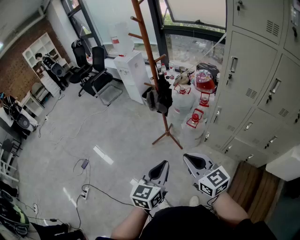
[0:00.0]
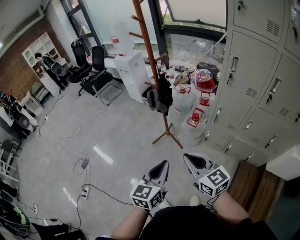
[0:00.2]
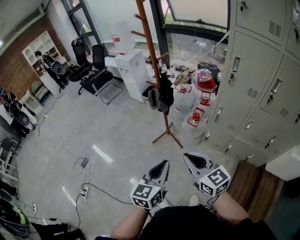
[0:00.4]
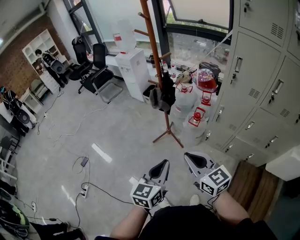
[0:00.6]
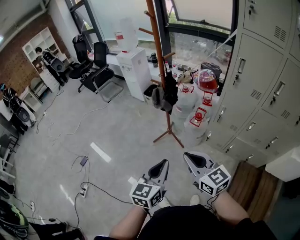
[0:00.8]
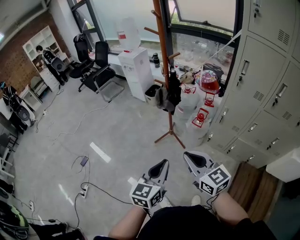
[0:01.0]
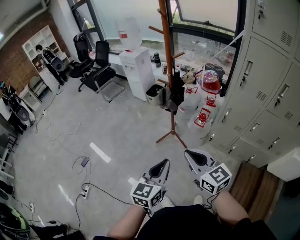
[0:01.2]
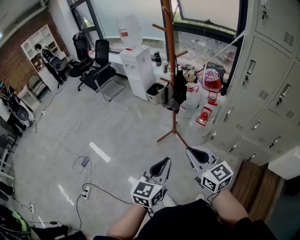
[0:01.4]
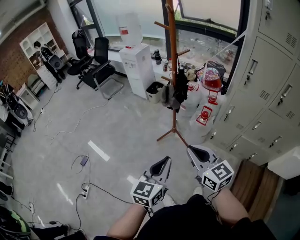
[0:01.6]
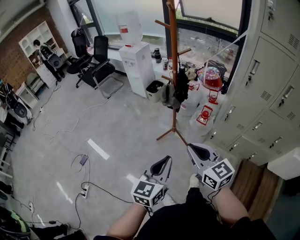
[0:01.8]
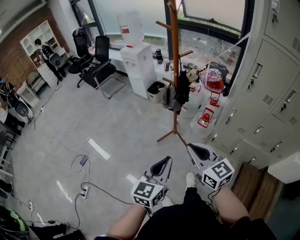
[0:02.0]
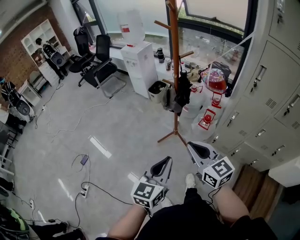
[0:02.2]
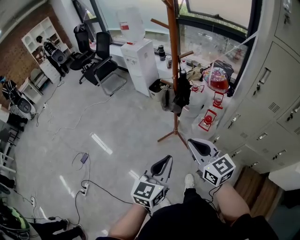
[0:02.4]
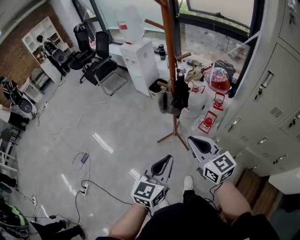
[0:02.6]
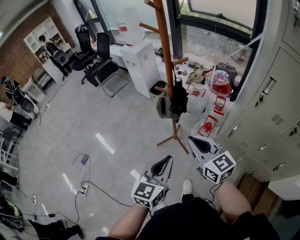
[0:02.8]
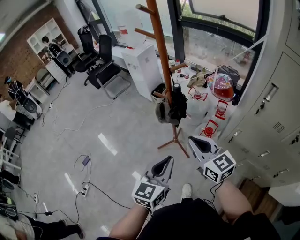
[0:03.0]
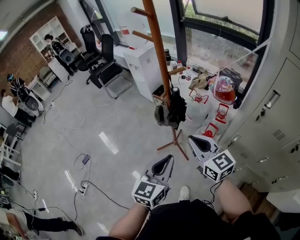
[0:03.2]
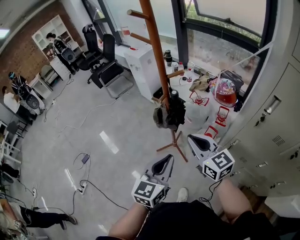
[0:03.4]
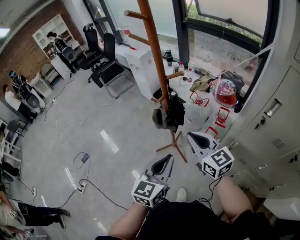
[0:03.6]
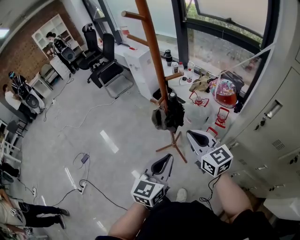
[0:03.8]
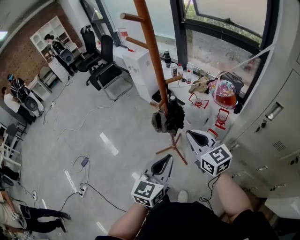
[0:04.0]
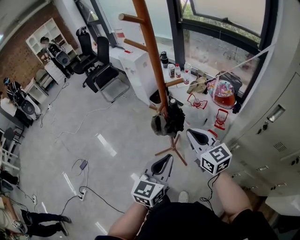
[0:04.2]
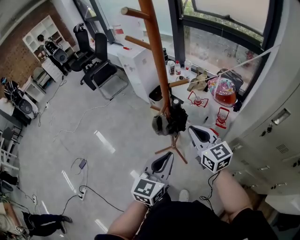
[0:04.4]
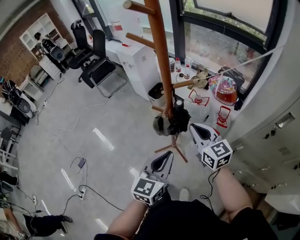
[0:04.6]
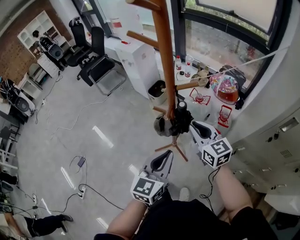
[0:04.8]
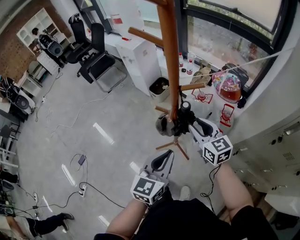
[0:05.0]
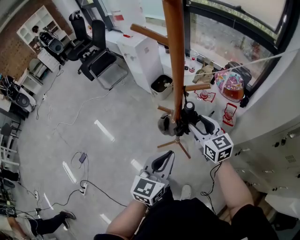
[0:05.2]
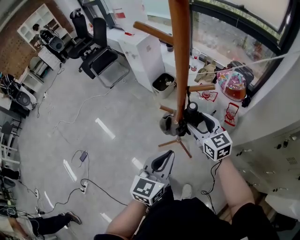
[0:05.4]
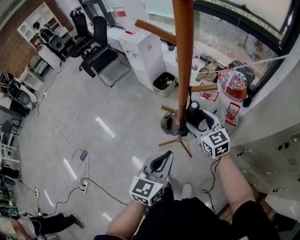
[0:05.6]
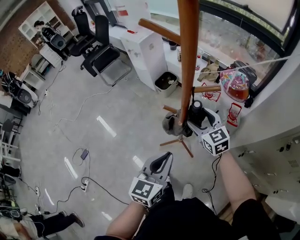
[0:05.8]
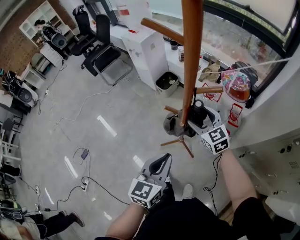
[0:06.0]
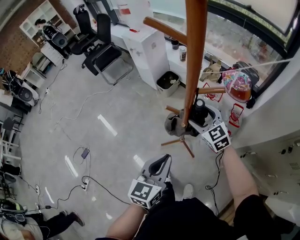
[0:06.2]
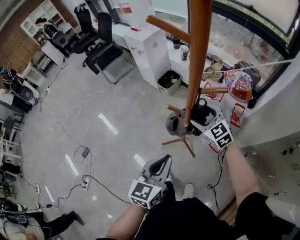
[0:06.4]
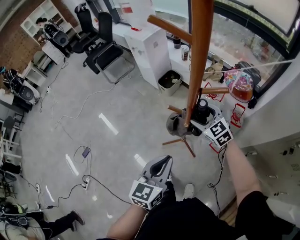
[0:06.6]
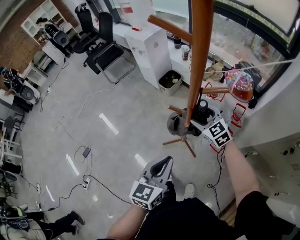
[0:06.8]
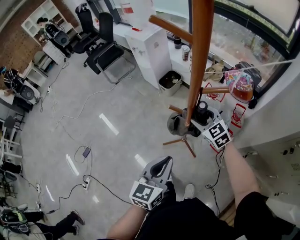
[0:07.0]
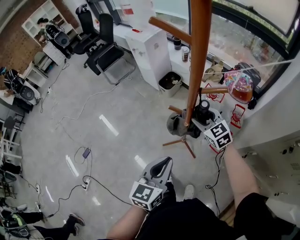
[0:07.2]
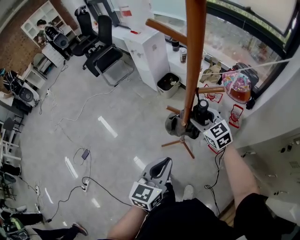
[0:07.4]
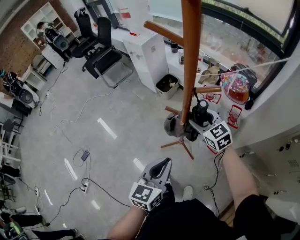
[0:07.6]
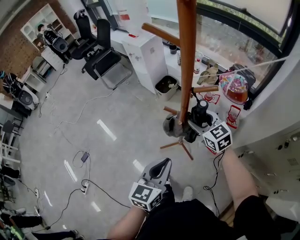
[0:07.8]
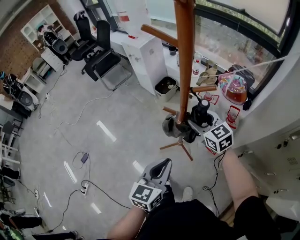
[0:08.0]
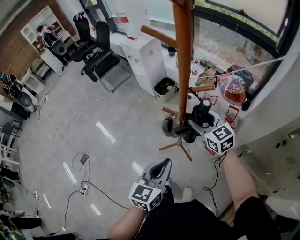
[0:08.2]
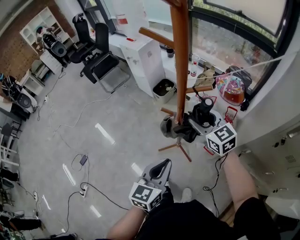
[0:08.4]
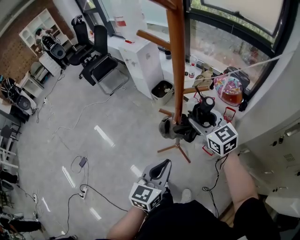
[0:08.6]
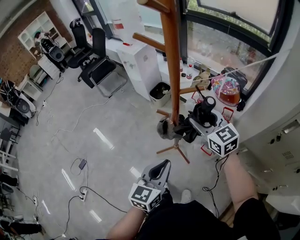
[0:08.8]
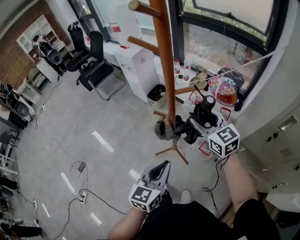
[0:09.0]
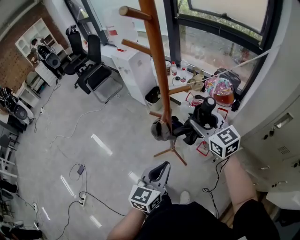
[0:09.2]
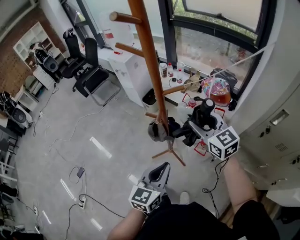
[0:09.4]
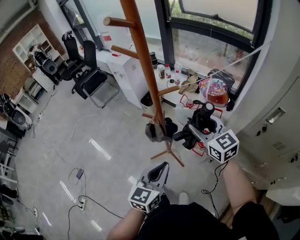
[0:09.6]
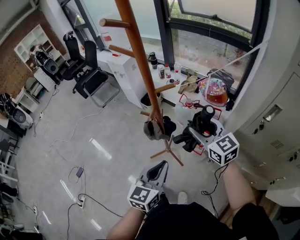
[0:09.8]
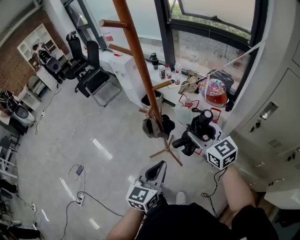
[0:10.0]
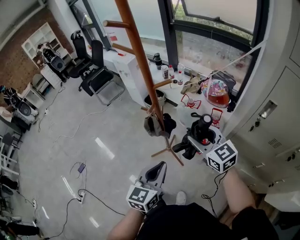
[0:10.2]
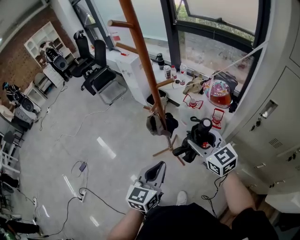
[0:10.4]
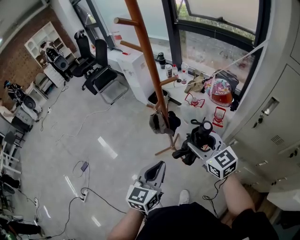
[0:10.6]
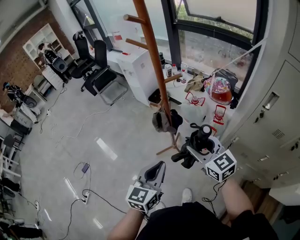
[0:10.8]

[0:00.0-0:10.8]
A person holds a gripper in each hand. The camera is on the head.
0:00.0 to 0:01.6: Both grippers travel together to the left, about 10 cm.
0:01.6 to 0:03.0: The grippers both shift forward and to the right by roughly 25 cm.
0:03.0 to 0:04.6: The grippers both shift forward by some 15 cm.
0:04.6 to 0:06.2: The left gripper is displaced to the left by roughly 5 cm. The right gripper shifts approximately 15 cm forward and downward, rotates some 20 degrees, and opens its fingers.
0:06.2 to 0:07.8: There are only small adjustments of the grippers.
0:07.8 to 0:09.2: The left gripper moves roughly 5 cm; the right gripper goes approximately 15 cm upward, to the right and backward.
0:09.2 to 0:10.8: The right gripper shifts roughly 20 cm backward, while the left gripper travels backward by approximately 10 cm.

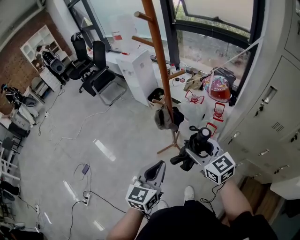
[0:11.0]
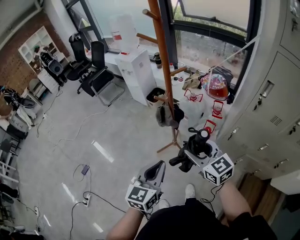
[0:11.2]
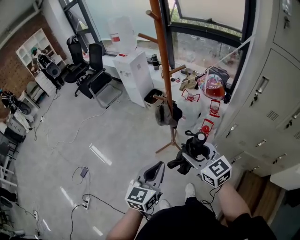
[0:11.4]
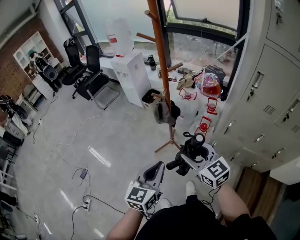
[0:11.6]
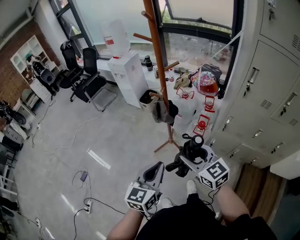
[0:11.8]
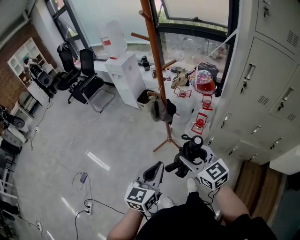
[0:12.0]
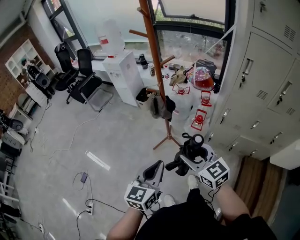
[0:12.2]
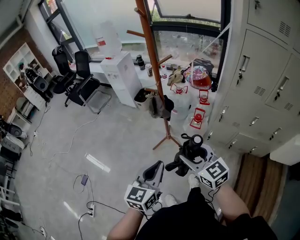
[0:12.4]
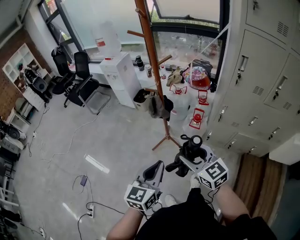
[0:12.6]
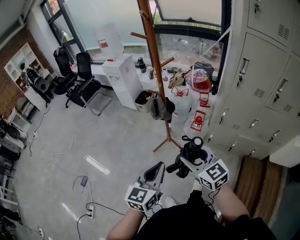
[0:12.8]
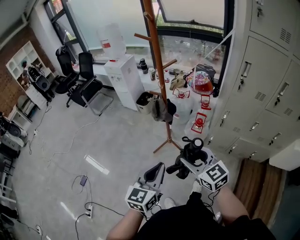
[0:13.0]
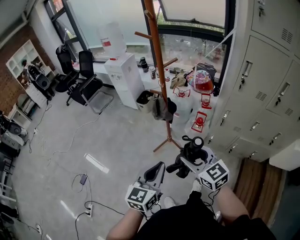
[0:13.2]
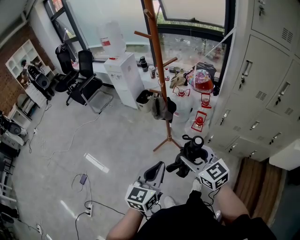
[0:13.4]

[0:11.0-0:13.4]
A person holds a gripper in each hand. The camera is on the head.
0:11.0 to 0:12.2: The grippers both shift backward and to the left by about 15 cm.
0:12.2 to 0:13.4: The grippers move only a little.

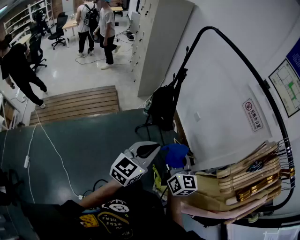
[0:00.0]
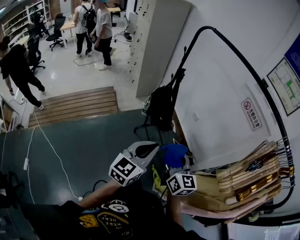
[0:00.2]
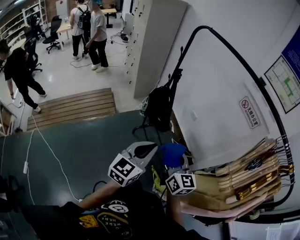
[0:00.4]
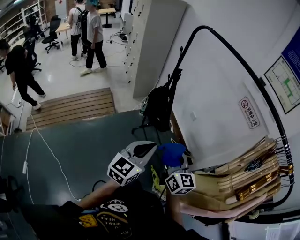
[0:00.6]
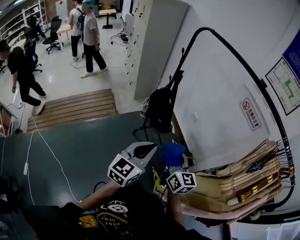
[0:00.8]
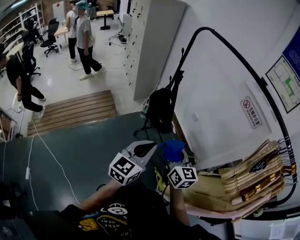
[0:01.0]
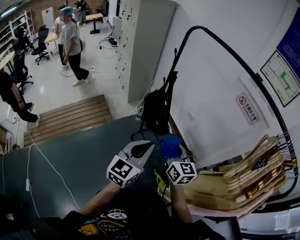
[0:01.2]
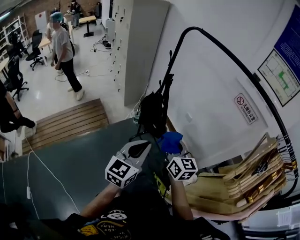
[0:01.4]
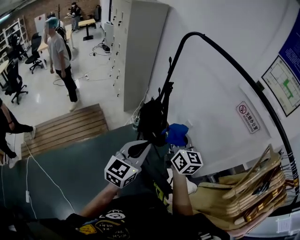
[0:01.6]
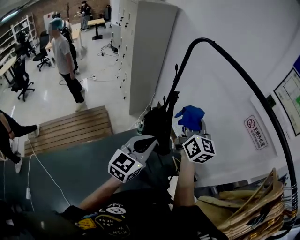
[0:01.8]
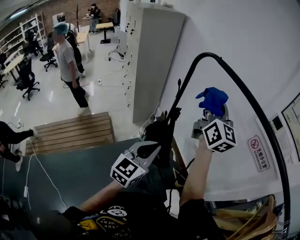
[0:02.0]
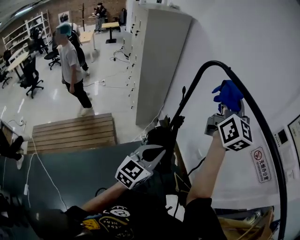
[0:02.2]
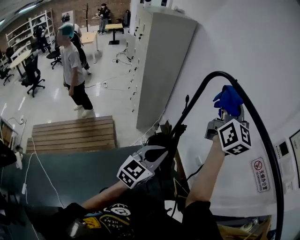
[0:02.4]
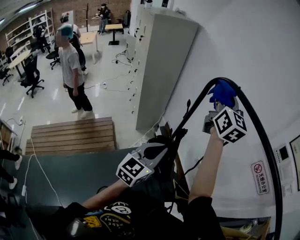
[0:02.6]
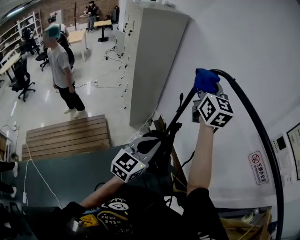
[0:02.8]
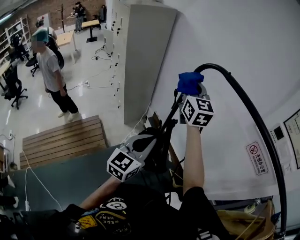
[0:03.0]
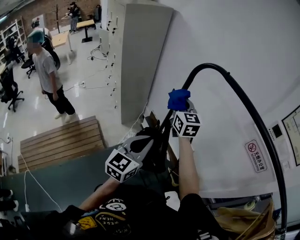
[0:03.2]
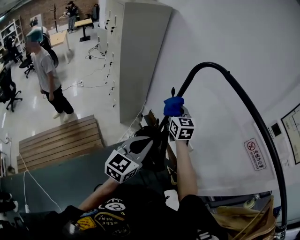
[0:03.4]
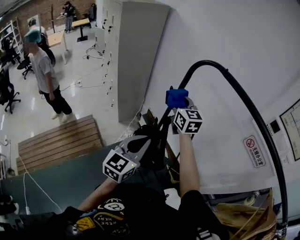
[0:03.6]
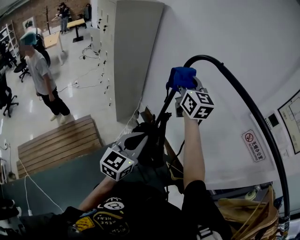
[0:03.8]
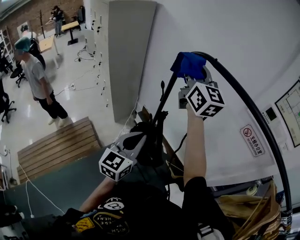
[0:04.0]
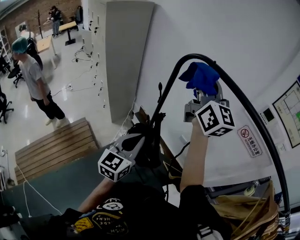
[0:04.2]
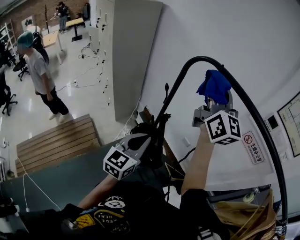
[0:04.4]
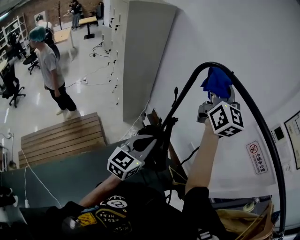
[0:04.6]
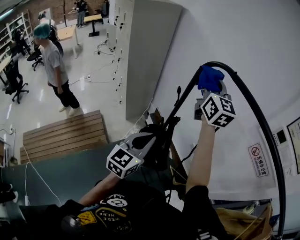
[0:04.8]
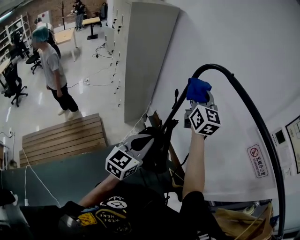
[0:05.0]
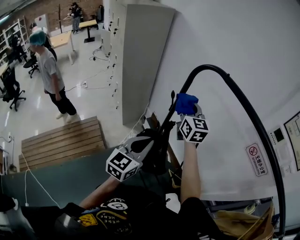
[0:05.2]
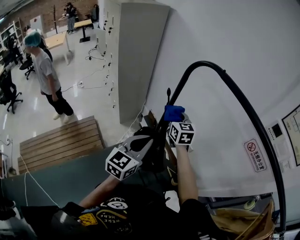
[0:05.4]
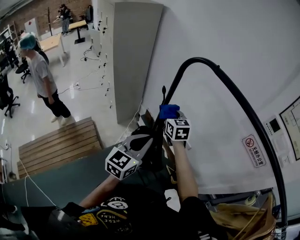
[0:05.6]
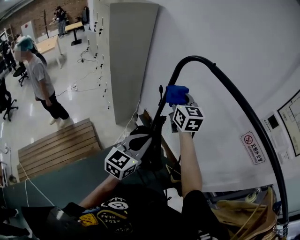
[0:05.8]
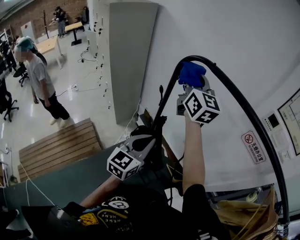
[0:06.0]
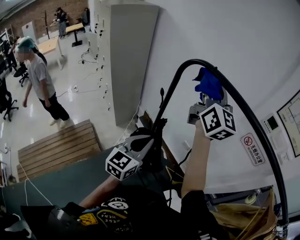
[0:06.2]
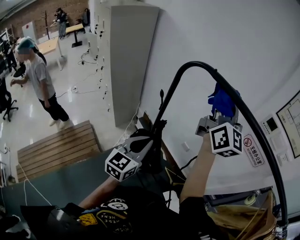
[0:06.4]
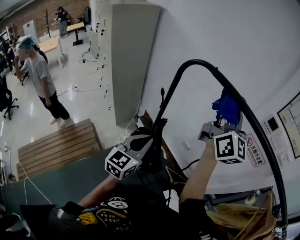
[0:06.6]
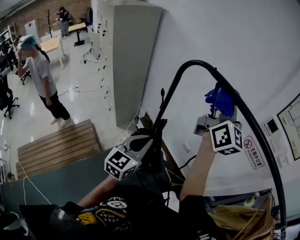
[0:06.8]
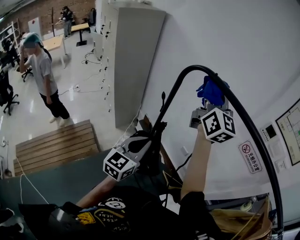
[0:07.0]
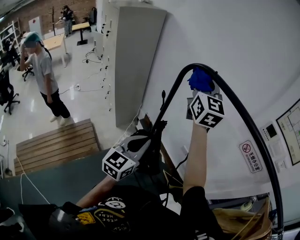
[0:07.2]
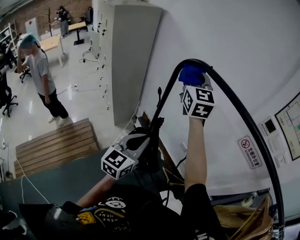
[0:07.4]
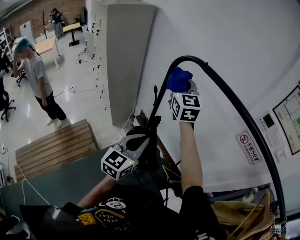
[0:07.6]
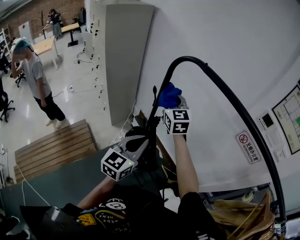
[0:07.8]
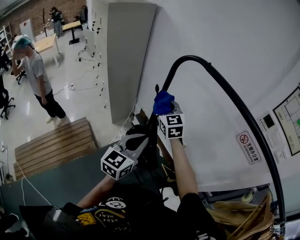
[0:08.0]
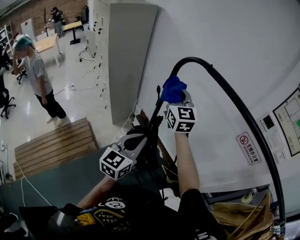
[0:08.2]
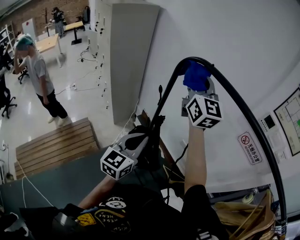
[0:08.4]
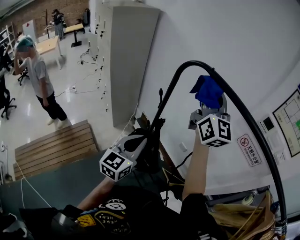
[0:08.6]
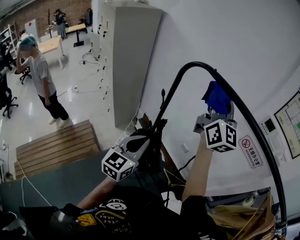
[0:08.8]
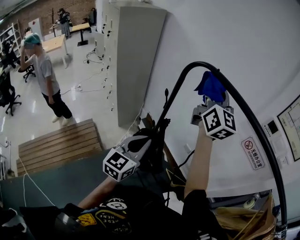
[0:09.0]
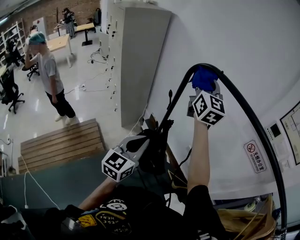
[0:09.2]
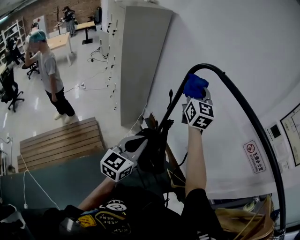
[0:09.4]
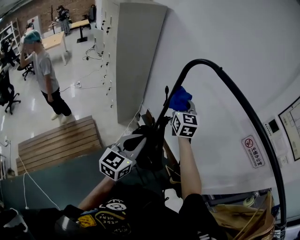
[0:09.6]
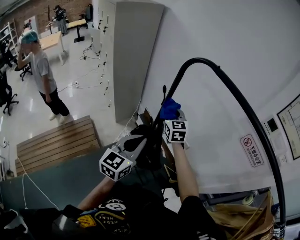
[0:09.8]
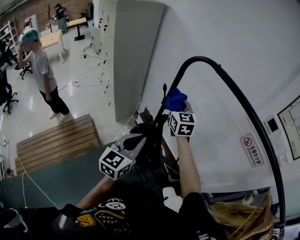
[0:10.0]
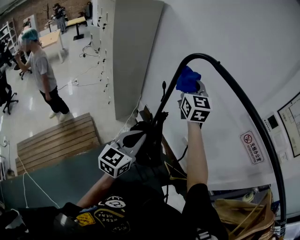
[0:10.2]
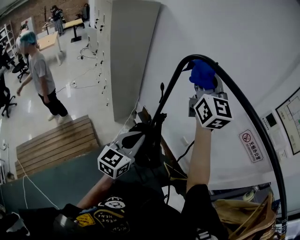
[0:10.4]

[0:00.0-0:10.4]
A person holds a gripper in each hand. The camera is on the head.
0:00.0 to 0:01.4: Both grippers move forward and to the left, some 10 cm.
0:01.4 to 0:03.0: The two grippers go roughly 40 cm forward. The right gripper swivels approximately 20 degrees.
0:03.0 to 0:04.4: The right gripper heads to the right, upward and backward, covering approximately 15 cm, and changes its angle by about 20 degrees.
0:04.4 to 0:06.0: The right gripper heads forward and to the left, covering about 10 cm, and travels downward and back again, about 30 cm each way.
0:06.0 to 0:07.4: The right gripper travels to the right and back again, some 15 cm each way.
0:07.4 to 0:09.0: The right gripper goes some 10 cm to the right and backward, reaches some 20 cm downward, then returns, and rotates some 20 degrees.
0:09.0 to 0:10.4: The right gripper moves some 30 cm downward and comes back.
